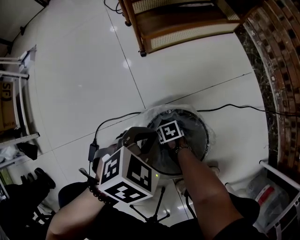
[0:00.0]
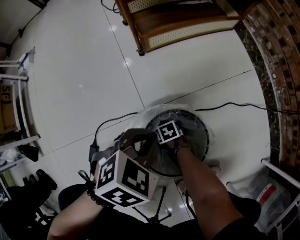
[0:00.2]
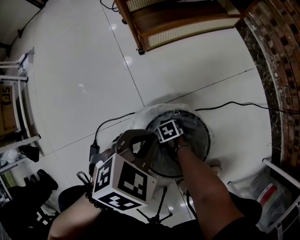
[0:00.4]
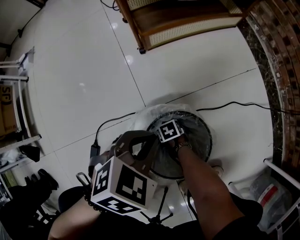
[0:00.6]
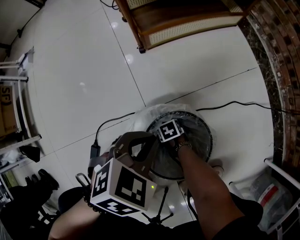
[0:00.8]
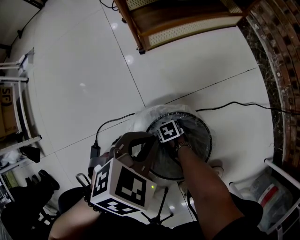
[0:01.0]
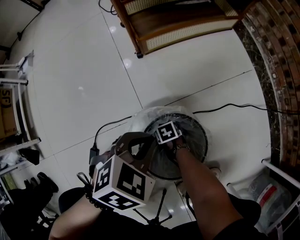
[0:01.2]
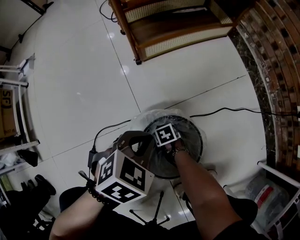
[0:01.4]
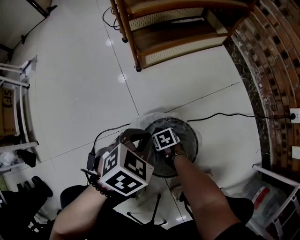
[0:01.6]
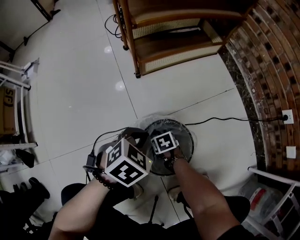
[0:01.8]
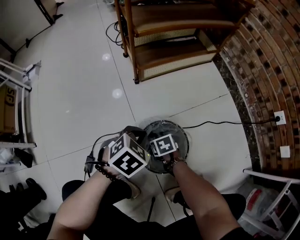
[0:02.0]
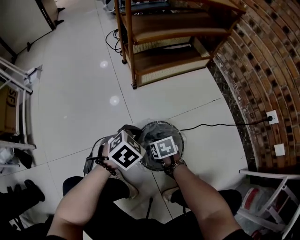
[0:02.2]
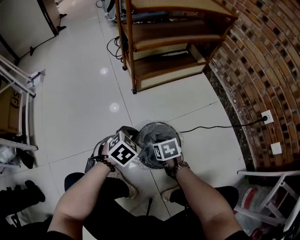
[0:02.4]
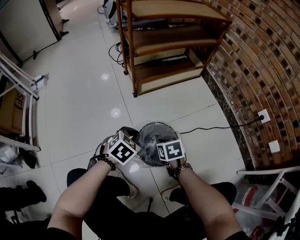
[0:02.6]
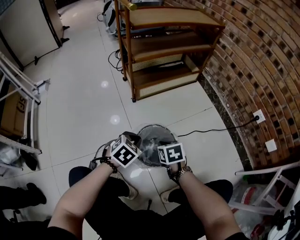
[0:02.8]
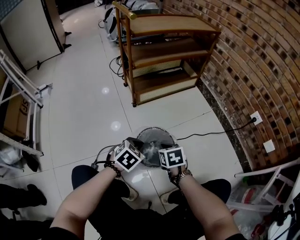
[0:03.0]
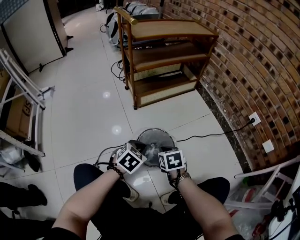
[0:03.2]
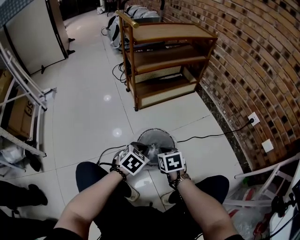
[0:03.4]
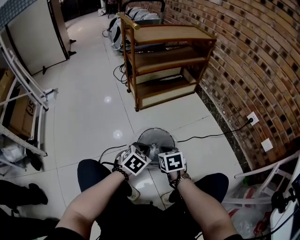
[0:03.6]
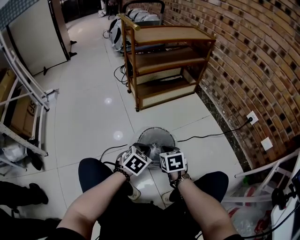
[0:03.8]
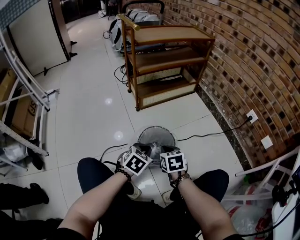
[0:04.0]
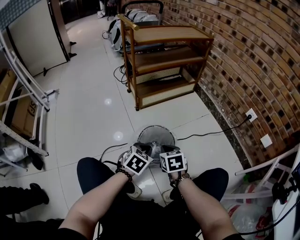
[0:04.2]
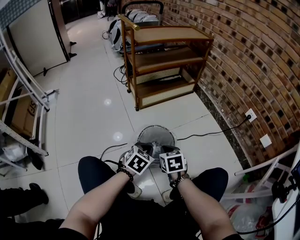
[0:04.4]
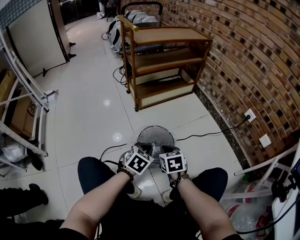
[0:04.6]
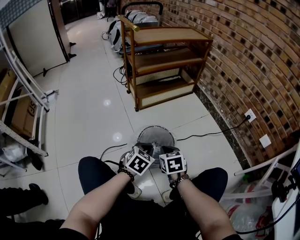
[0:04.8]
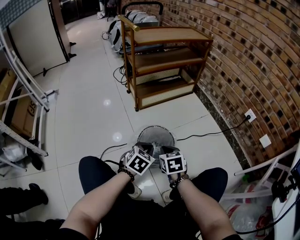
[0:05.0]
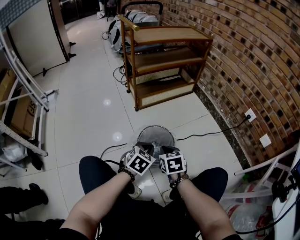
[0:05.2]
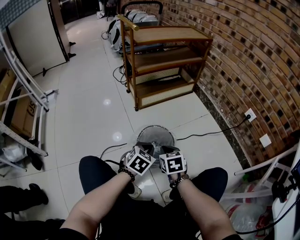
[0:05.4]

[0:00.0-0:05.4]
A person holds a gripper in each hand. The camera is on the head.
0:00.0 to 0:01.4: There are only small adjustments of the grippers.
0:01.4 to 0:02.8: The left gripper moves roughly 5 cm. The right gripper moves upward, some 30 cm, and rotates some 30 degrees.
0:02.8 to 0:04.0: The left gripper is displaced backward by roughly 5 cm. The right gripper is displaced upward and backward by roughly 10 cm.
0:04.0 to 0:05.4: The grippers move only a little.

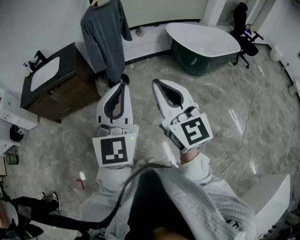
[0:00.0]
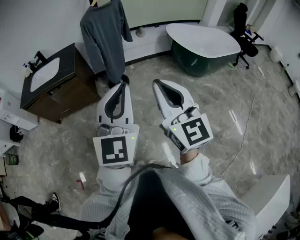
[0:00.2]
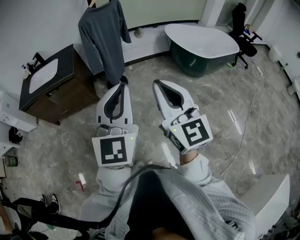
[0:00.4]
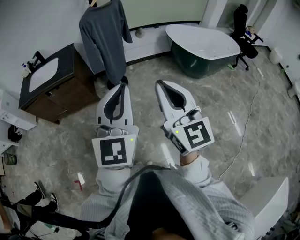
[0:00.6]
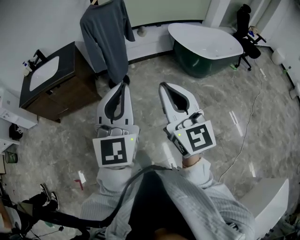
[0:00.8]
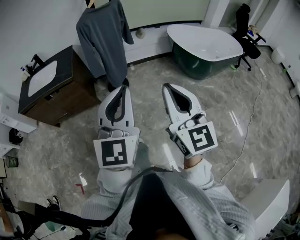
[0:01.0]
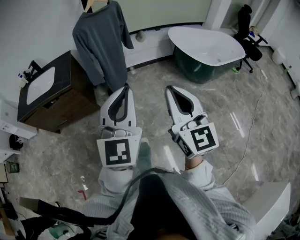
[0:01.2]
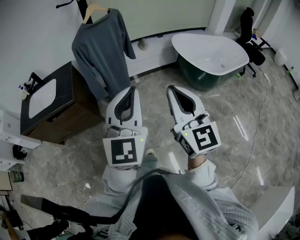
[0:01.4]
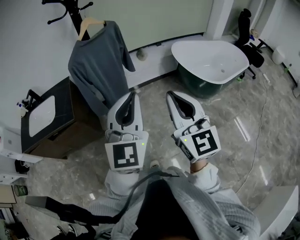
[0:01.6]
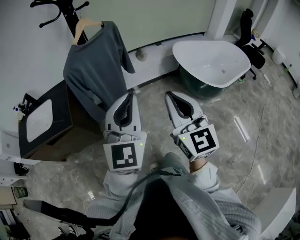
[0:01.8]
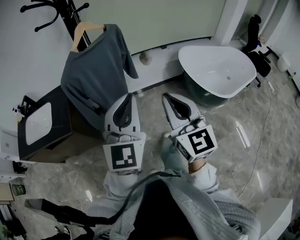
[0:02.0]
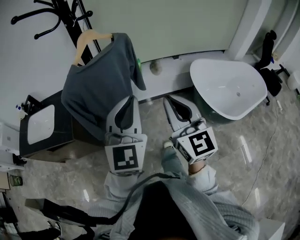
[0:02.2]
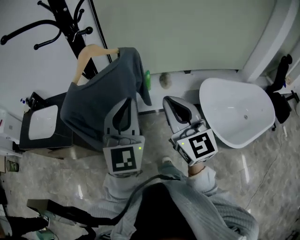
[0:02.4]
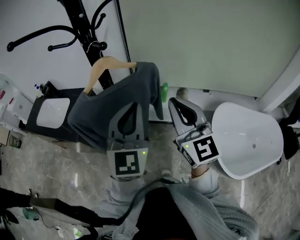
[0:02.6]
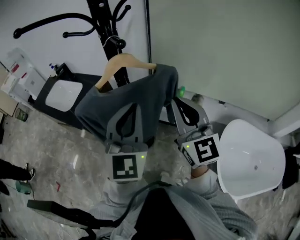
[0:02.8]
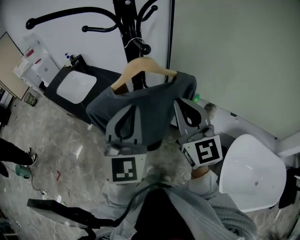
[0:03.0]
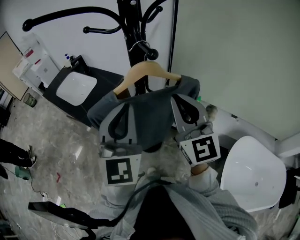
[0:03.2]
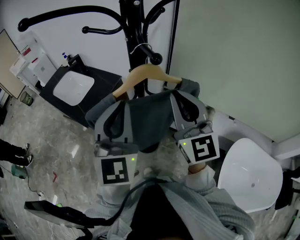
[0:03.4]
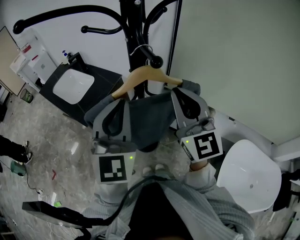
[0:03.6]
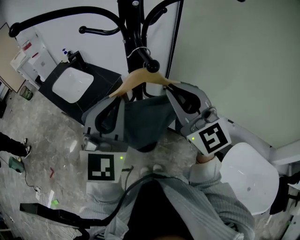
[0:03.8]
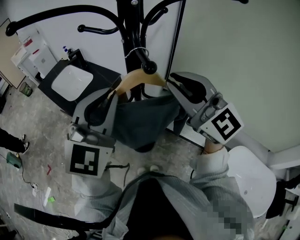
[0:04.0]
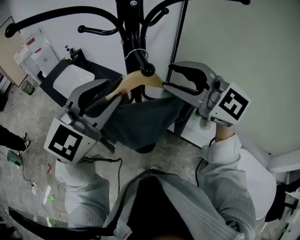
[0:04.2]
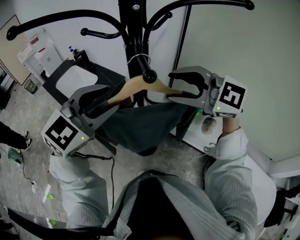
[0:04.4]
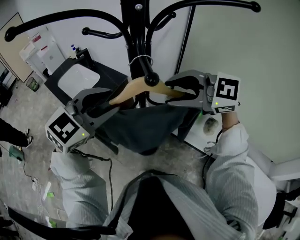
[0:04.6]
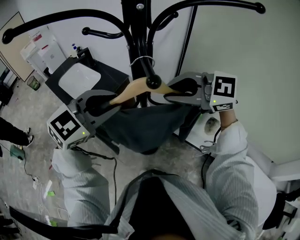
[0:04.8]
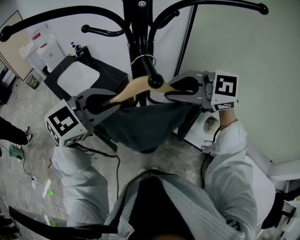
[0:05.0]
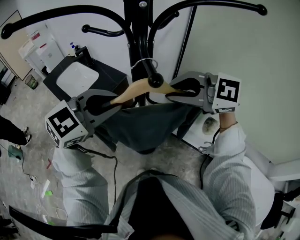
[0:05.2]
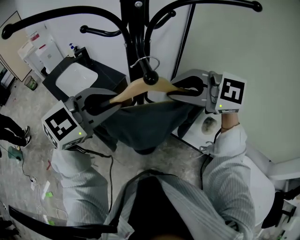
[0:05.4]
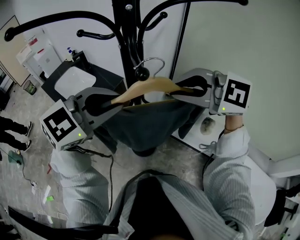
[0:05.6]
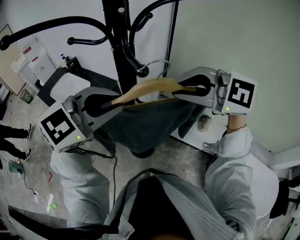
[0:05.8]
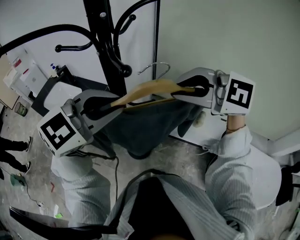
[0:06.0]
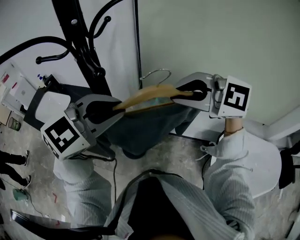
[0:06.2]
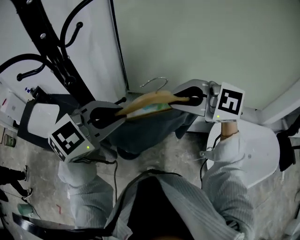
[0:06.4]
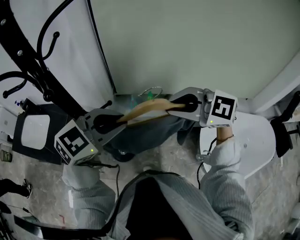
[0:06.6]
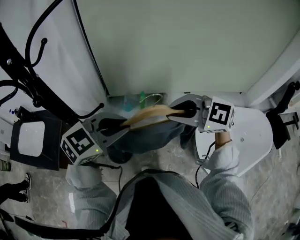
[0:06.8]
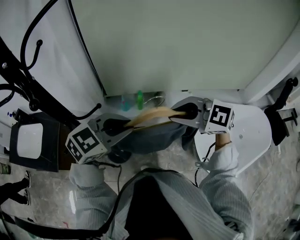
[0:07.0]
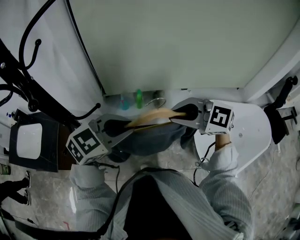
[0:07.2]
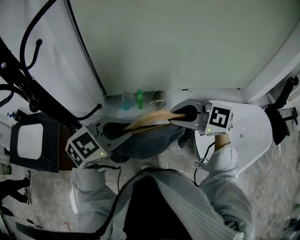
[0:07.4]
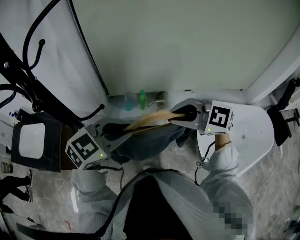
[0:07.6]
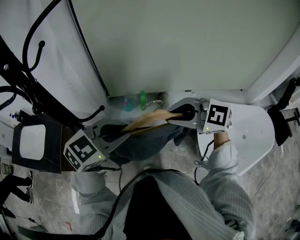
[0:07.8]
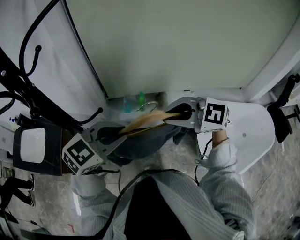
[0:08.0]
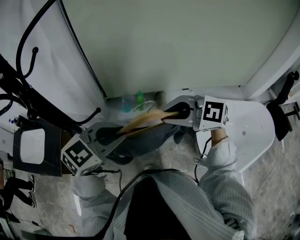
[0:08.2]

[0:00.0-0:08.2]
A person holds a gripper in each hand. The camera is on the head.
0:00.0 to 0:01.6: The two grippers go approximately 35 cm forward.
0:01.6 to 0:03.2: Both grippers are carried about 50 cm. The left gripper turns by about 50 degrees, while the right gripper rotates about 50 degrees.
0:03.2 to 0:05.0: The right gripper moves about 10 cm, rotates roughly 70 degrees, and opens, then closes again. The left gripper ends up about 10 cm from where it was, swivels about 50 degrees, and opens and closes again.
0:05.0 to 0:06.6: The right gripper ends up roughly 25 cm from where it was, and rotates roughly 40 degrees; the left gripper changes place by approximately 25 cm, and swivels about 30 degrees.
0:06.6 to 0:08.2: The right gripper goes approximately 5 cm downward. Meanwhile the left gripper shifts by approximately 5 cm.

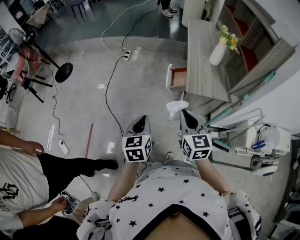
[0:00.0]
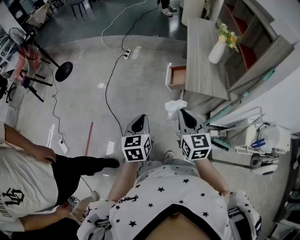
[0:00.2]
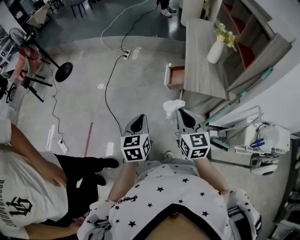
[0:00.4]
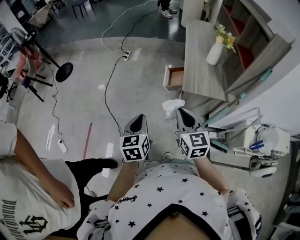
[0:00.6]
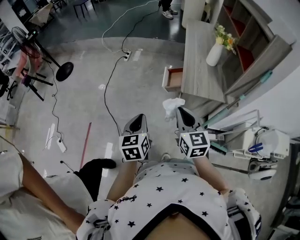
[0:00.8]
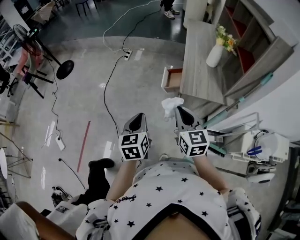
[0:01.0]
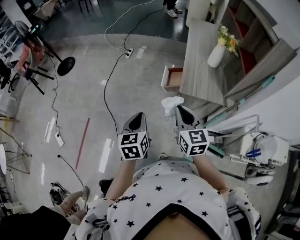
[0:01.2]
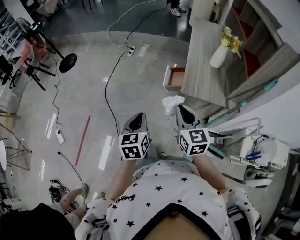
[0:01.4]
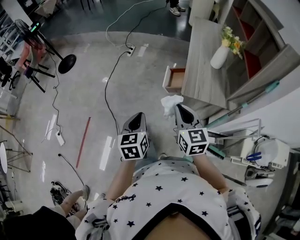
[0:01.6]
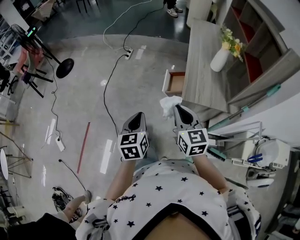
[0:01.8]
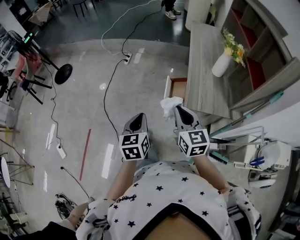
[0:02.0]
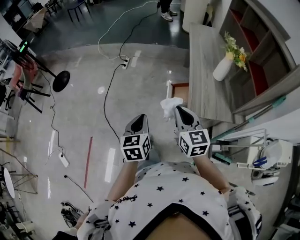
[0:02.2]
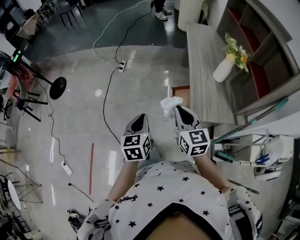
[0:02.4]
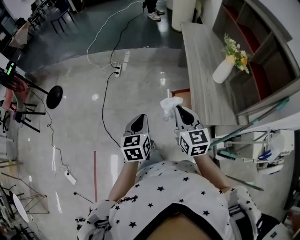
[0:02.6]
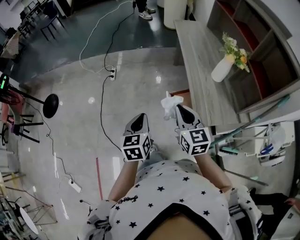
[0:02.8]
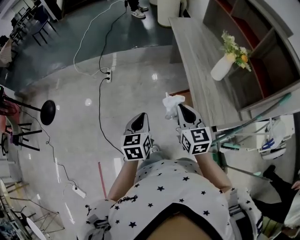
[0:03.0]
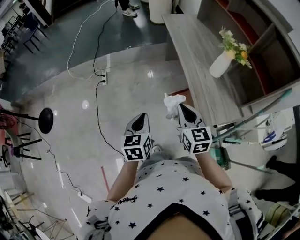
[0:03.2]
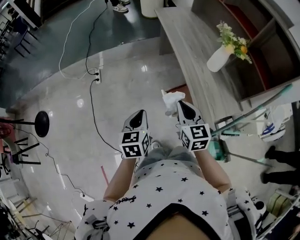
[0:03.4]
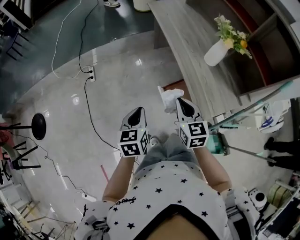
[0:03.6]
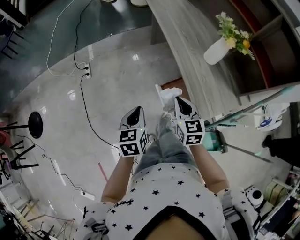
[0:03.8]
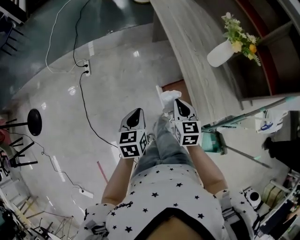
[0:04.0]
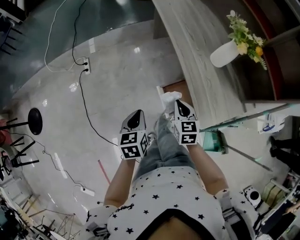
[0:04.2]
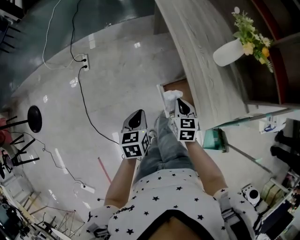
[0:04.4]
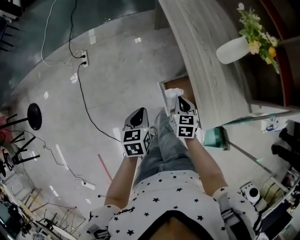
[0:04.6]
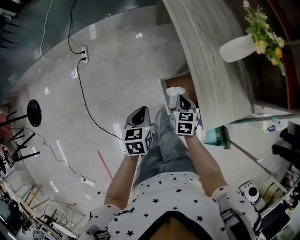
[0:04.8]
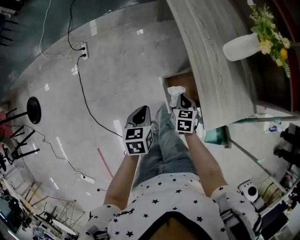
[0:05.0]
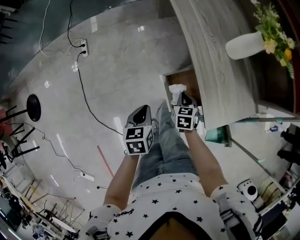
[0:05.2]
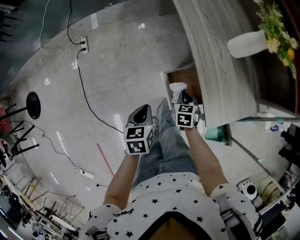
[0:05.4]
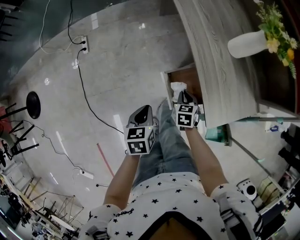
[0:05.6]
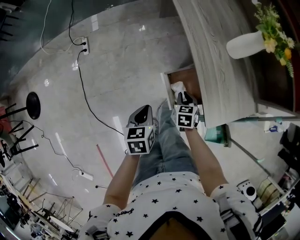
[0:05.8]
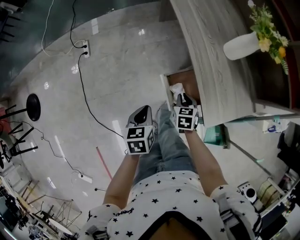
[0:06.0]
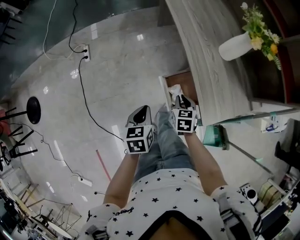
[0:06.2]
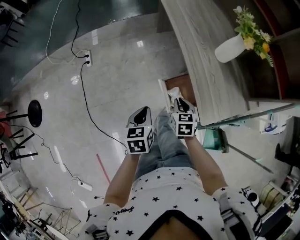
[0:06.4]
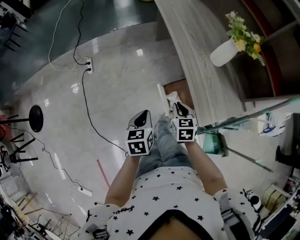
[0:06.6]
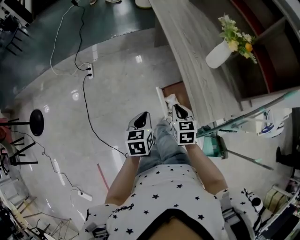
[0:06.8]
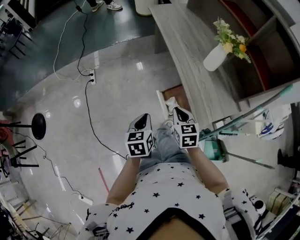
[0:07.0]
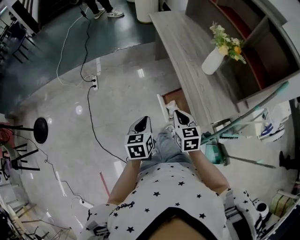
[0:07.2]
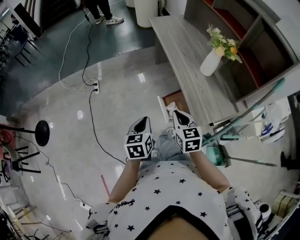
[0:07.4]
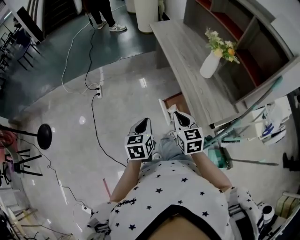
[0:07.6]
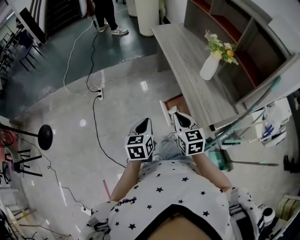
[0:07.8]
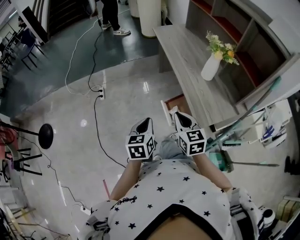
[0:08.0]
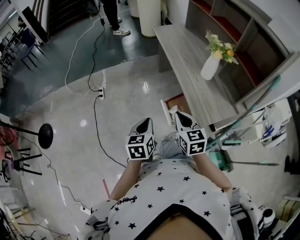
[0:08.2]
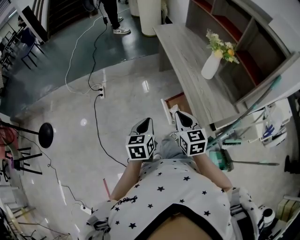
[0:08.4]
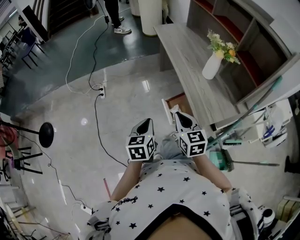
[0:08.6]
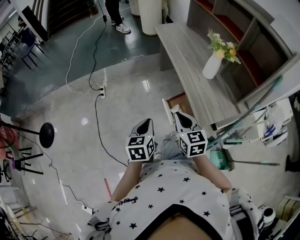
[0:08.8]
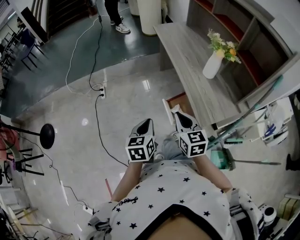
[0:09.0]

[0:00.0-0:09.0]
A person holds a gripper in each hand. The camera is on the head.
0:00.0 to 0:01.6: The right gripper changes place by roughly 5 cm; the left gripper ends up roughly 5 cm from where it was.
0:01.6 to 0:03.0: The grippers both shift forward by roughly 30 cm. The right gripper changes its angle by roughly 20 degrees; the left gripper turns by approximately 20 degrees.
0:03.0 to 0:04.4: The grippers both shift downward and forward by roughly 25 cm. The right gripper turns by roughly 30 degrees.
0:04.4 to 0:06.0: The right gripper moves downward, about 10 cm, while the left gripper shifts by about 5 cm.
0:06.0 to 0:07.6: The left gripper travels upward and backward by about 15 cm, while the right gripper is displaced upward by roughly 25 cm, and changes its angle by approximately 30 degrees.
0:07.6 to 0:09.0: The grippers make only small movements.

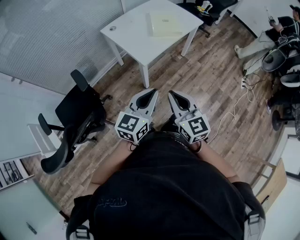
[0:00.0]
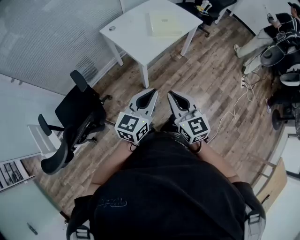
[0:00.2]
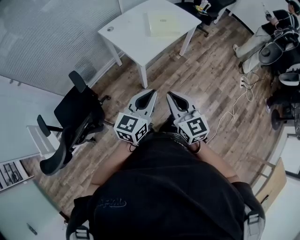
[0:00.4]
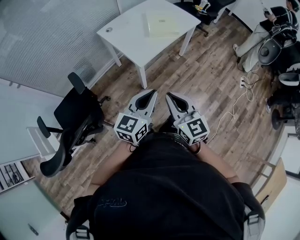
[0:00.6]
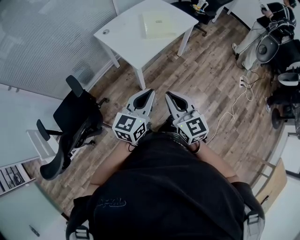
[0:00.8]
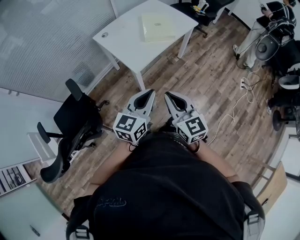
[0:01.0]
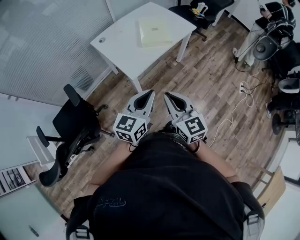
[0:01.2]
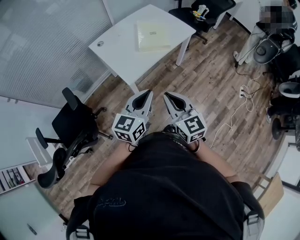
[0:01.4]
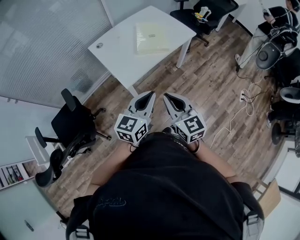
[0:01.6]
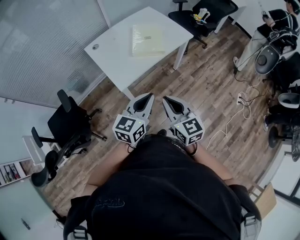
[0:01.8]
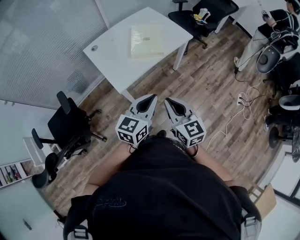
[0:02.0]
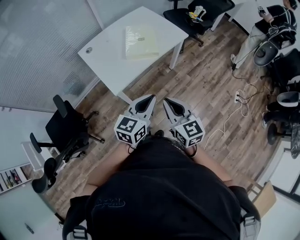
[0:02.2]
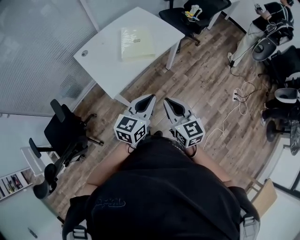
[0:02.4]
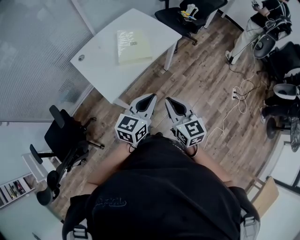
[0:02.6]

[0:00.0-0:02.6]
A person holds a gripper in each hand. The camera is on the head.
0:00.0 to 0:01.2: The two grippers go roughly 10 cm forward and to the right.
0:01.2 to 0:02.6: Both grippers travel together to the right and forward, roughly 20 cm.
